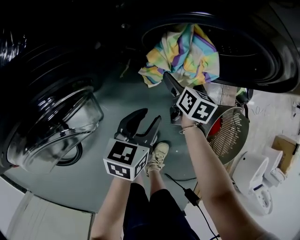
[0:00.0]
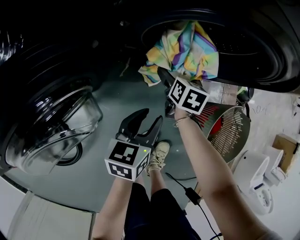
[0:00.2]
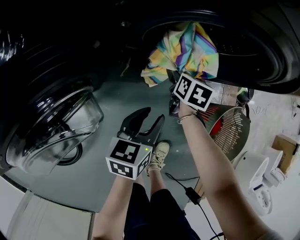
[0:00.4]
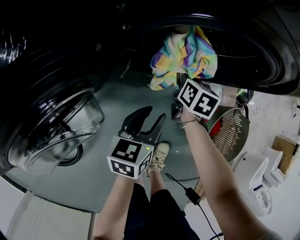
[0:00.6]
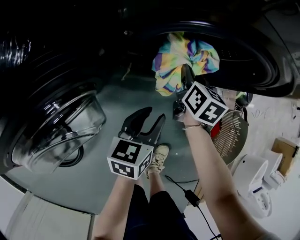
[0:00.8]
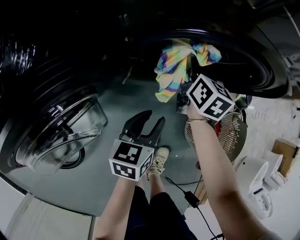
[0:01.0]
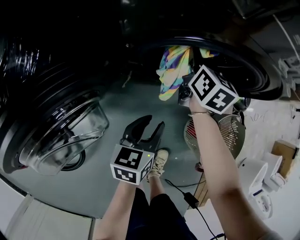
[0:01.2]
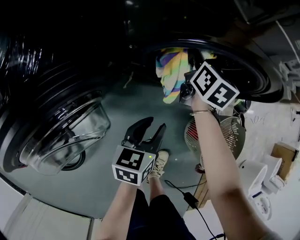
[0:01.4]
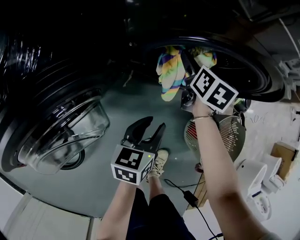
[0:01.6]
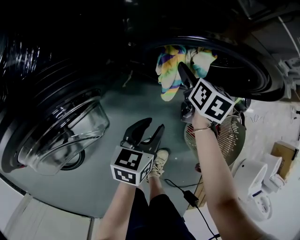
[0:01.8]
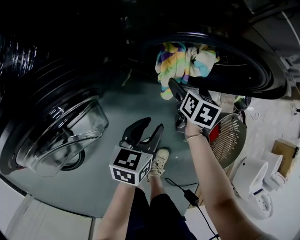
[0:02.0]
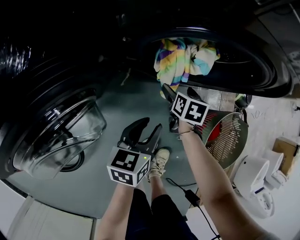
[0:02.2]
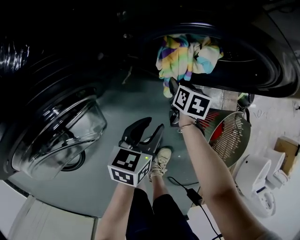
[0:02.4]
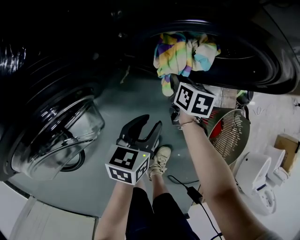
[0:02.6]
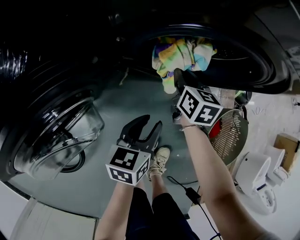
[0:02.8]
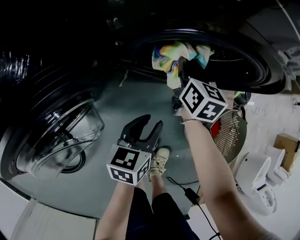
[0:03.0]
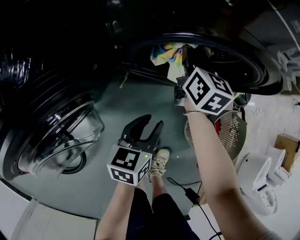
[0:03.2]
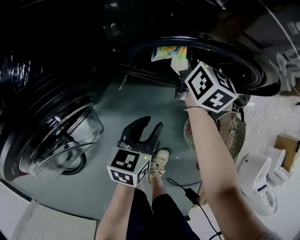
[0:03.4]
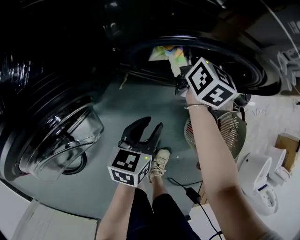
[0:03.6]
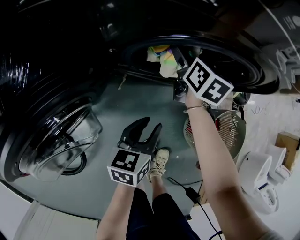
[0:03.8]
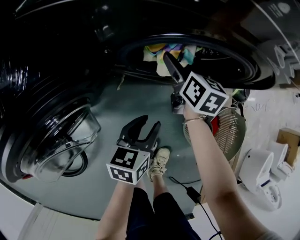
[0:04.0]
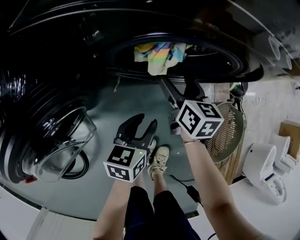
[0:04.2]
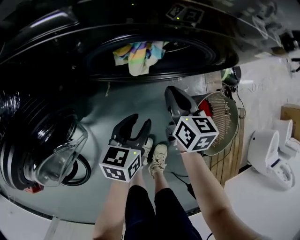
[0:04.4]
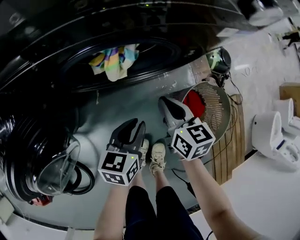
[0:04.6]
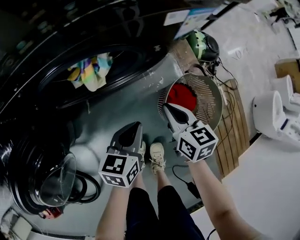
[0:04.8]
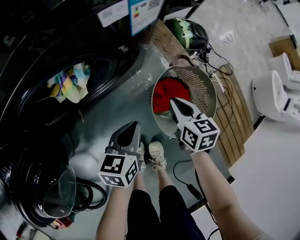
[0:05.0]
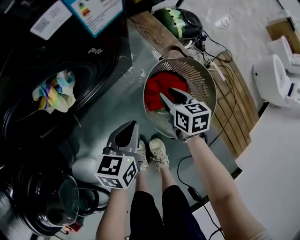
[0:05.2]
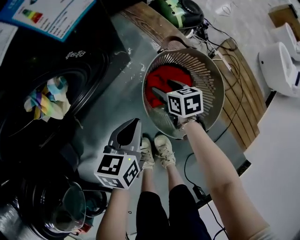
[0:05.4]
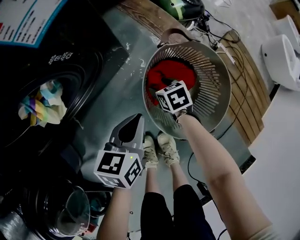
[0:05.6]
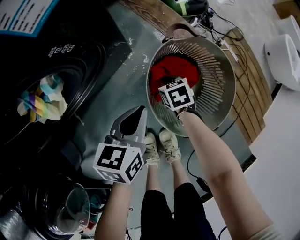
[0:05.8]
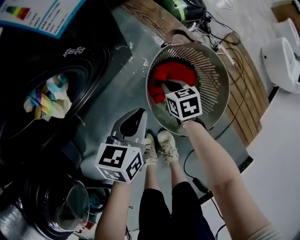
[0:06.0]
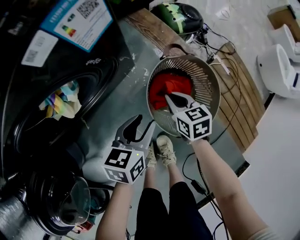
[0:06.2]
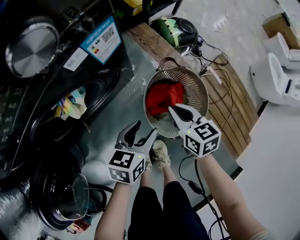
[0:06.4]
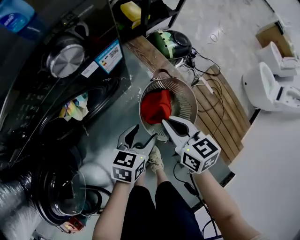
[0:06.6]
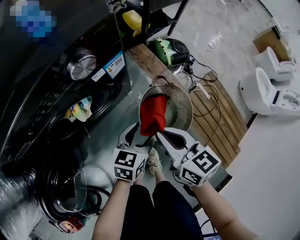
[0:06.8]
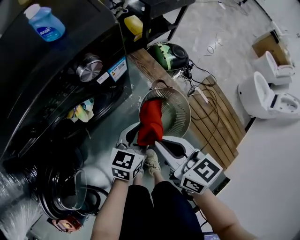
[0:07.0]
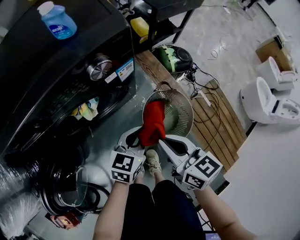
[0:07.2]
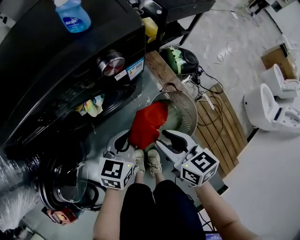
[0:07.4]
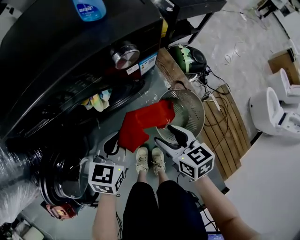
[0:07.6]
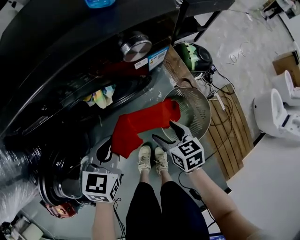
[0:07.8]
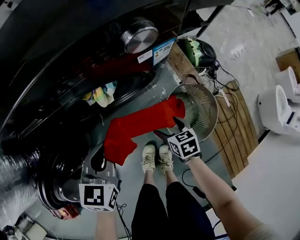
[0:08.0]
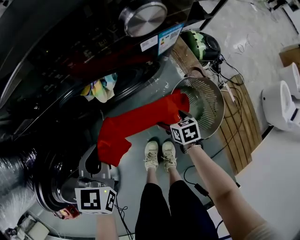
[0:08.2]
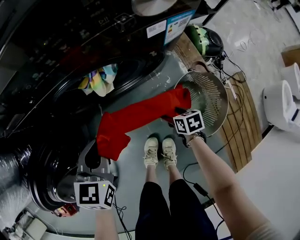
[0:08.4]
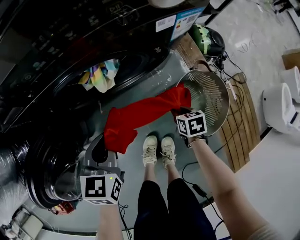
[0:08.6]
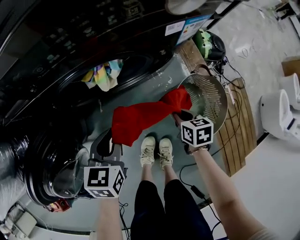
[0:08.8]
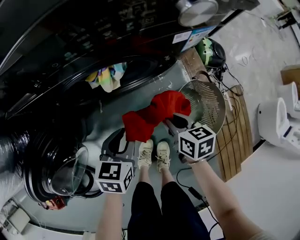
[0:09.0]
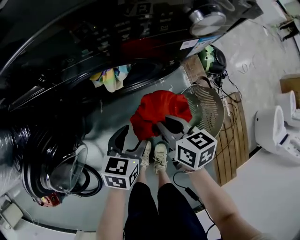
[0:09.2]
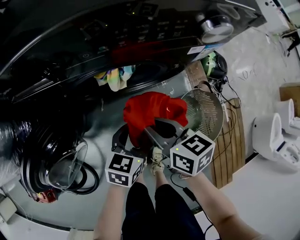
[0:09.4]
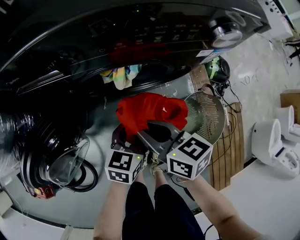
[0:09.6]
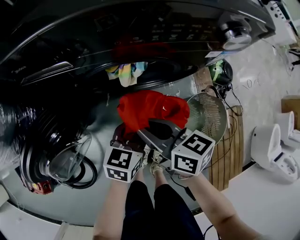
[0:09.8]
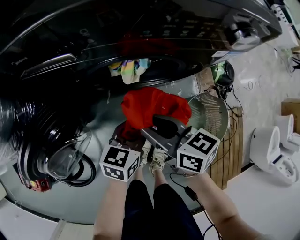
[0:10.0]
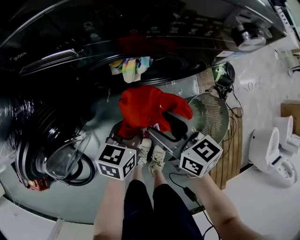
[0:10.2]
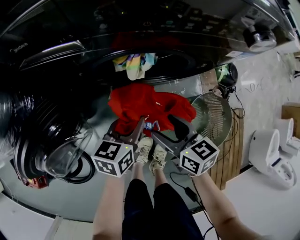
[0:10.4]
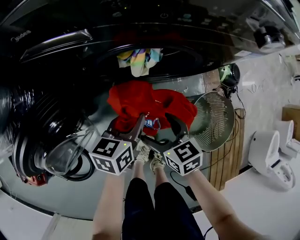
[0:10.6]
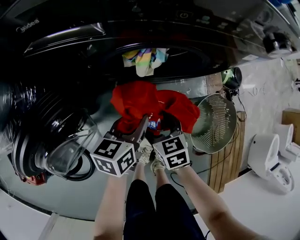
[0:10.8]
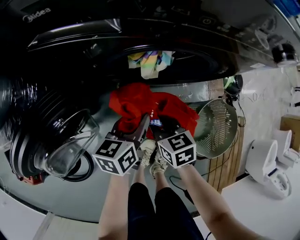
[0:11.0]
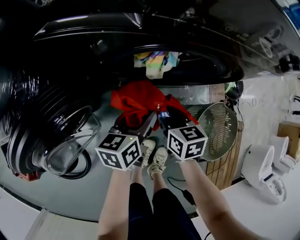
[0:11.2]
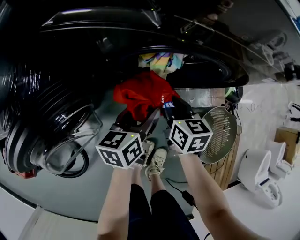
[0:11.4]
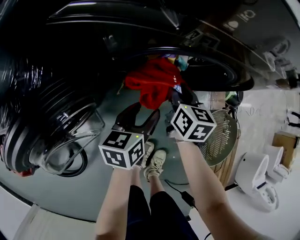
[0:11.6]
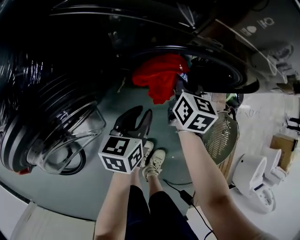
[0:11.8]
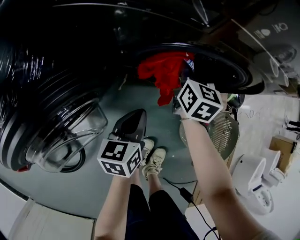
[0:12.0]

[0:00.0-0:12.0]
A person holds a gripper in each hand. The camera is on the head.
0:00.0 to 0:01.6: The right gripper moves upward and forward, about 15 cm, and closes and opens again.
0:01.6 to 0:03.0: The right gripper goes downward and returns, roughly 15 cm each way, and closes its fingers.
0:03.0 to 0:04.4: The left gripper shifts some 5 cm to the right, while the right gripper travels backward and to the right by approximately 15 cm, and opens, then closes once more.
0:04.4 to 0:06.0: The left gripper shifts approximately 20 cm to the right, and rotates about 30 degrees; the right gripper moves to the right and downward, some 35 cm, swivels approximately 30 degrees, and opens, then closes once more.
0:06.0 to 0:07.6: The left gripper travels upward and to the left by about 25 cm, rotates roughly 20 degrees, and opens, then closes once more, while the right gripper travels upward by roughly 35 cm, turns by approximately 30 degrees, and opens its fingers.
0:07.6 to 0:09.0: The left gripper heads downward and to the left, covering approximately 15 cm; the right gripper travels downward by about 15 cm, and opens and closes again.
0:09.0 to 0:10.4: The right gripper is displaced to the left by about 10 cm, changes its angle by some 20 degrees, and opens, while the left gripper opens and closes again.
0:10.4 to 0:12.0: The right gripper shifts about 25 cm forward, rotates about 30 degrees, and closes its fingers. Meanwhile the left gripper is displaced to the left and downward by roughly 10 cm, and opens, then closes again.

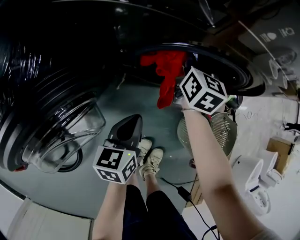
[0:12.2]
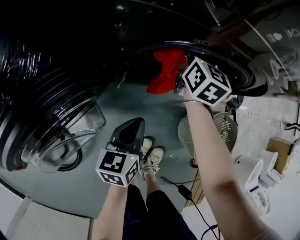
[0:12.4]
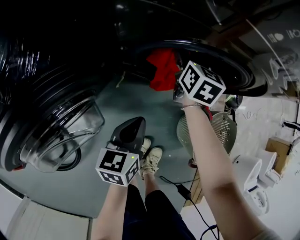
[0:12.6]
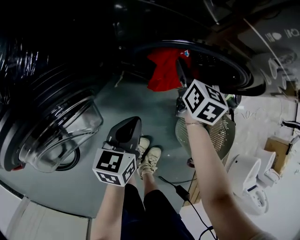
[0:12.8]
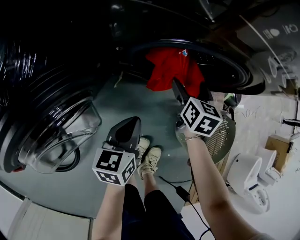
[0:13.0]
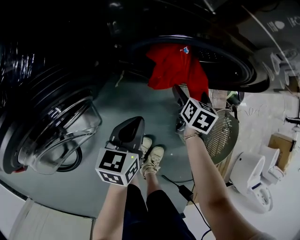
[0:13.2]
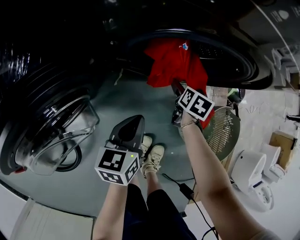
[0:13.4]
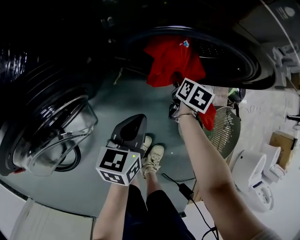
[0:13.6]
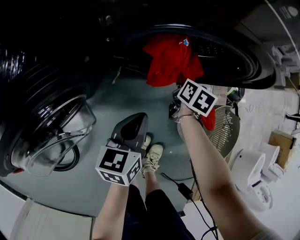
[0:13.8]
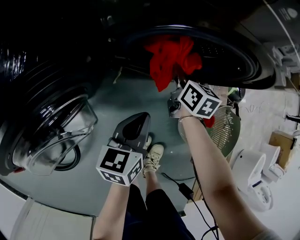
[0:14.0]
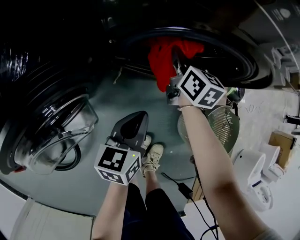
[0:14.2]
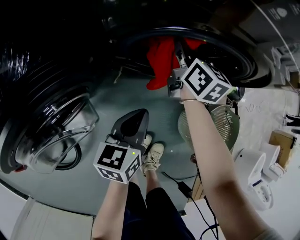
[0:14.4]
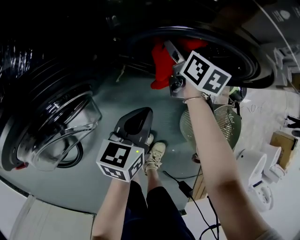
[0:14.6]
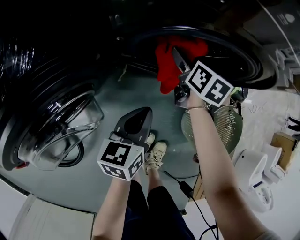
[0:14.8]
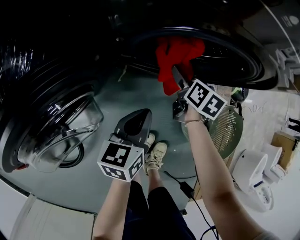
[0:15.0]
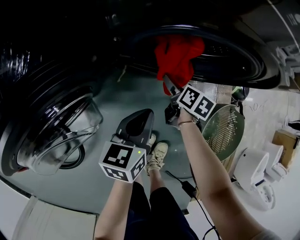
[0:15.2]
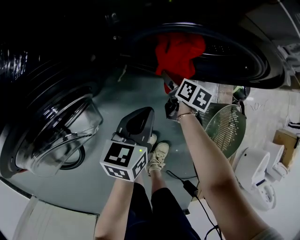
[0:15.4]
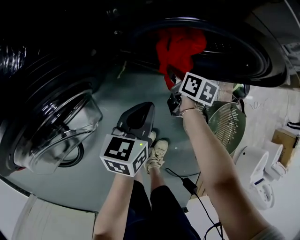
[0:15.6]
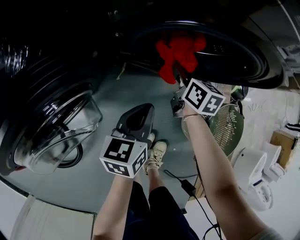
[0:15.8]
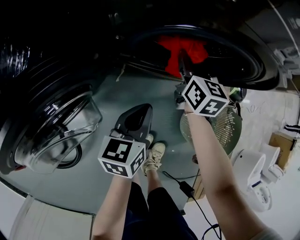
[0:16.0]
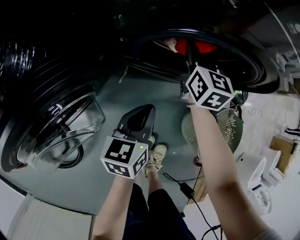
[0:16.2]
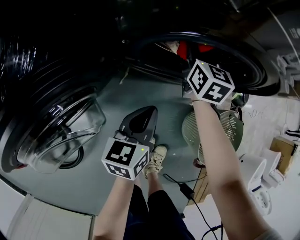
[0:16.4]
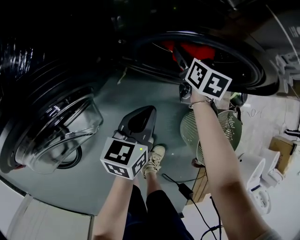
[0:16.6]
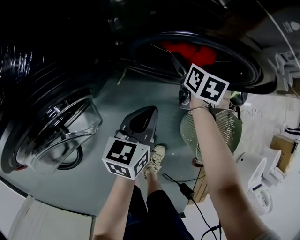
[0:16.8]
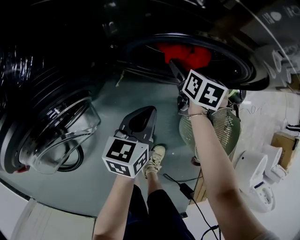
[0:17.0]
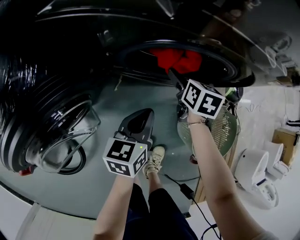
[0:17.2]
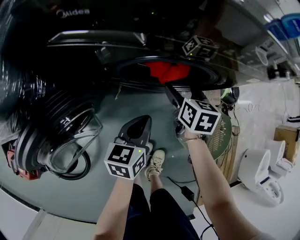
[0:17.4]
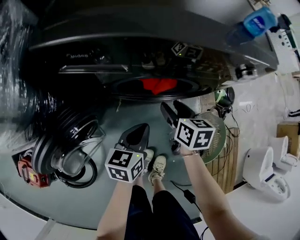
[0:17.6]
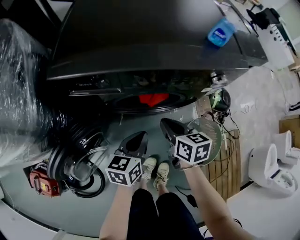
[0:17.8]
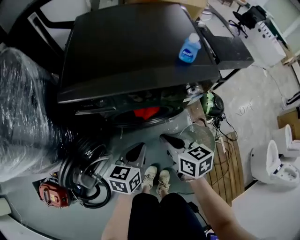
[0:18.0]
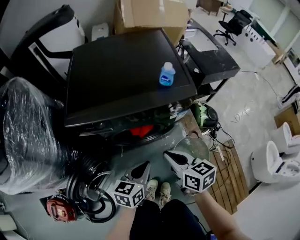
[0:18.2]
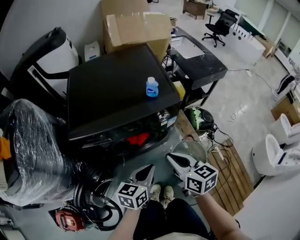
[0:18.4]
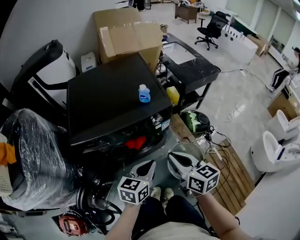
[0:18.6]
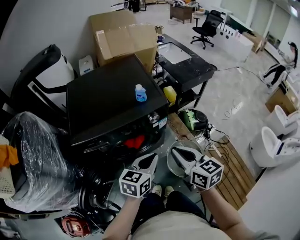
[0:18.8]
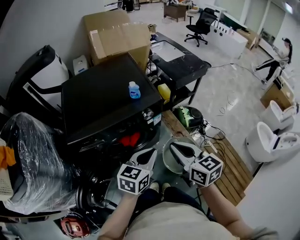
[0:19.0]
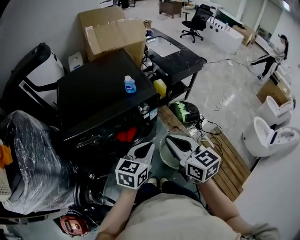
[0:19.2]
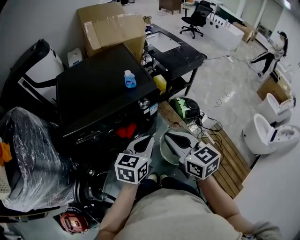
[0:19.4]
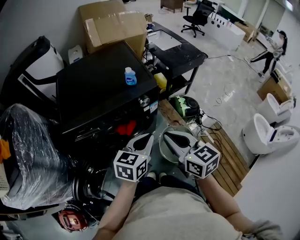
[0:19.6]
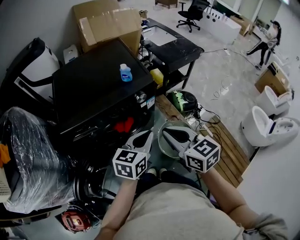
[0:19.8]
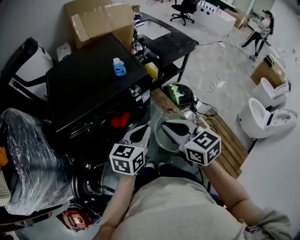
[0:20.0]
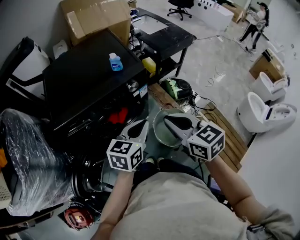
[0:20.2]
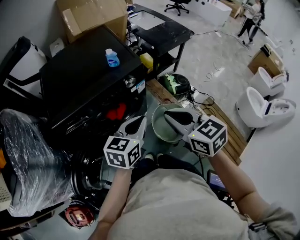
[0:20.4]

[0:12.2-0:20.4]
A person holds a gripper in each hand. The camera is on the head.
0:12.2 to 0:13.8: The right gripper heads downward, to the right and backward, covering roughly 20 cm, turns by some 30 degrees, and opens and closes again.
0:13.8 to 0:15.4: The right gripper goes upward and returns, about 15 cm each way, and opens up.
0:15.4 to 0:17.2: The right gripper goes approximately 15 cm upward, rotates about 20 degrees, and closes, then opens again.
0:17.2 to 0:18.8: The right gripper shifts roughly 50 cm upward and backward, rotates some 30 degrees, and closes its fingers, while the left gripper shifts about 40 cm upward and to the right, and changes its angle by about 40 degrees.
0:18.8 to 0:20.4: The grippers move only a little.

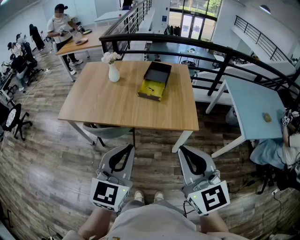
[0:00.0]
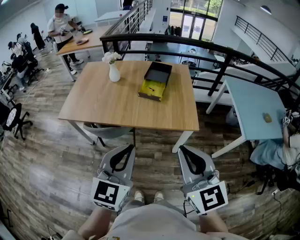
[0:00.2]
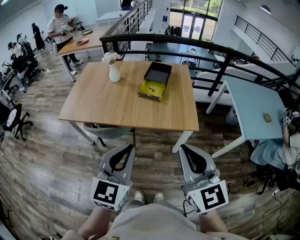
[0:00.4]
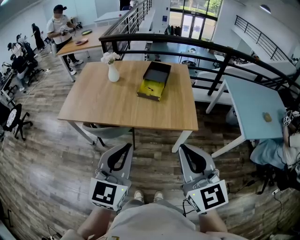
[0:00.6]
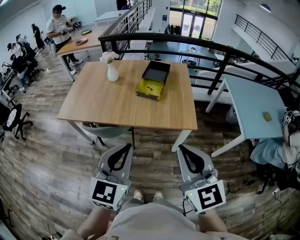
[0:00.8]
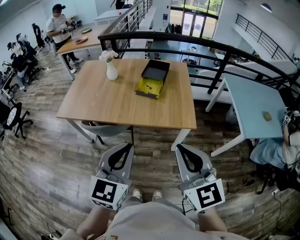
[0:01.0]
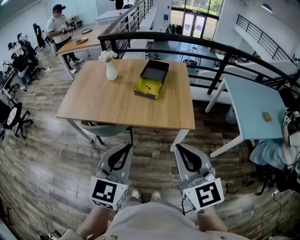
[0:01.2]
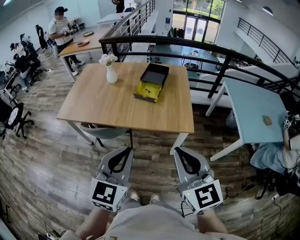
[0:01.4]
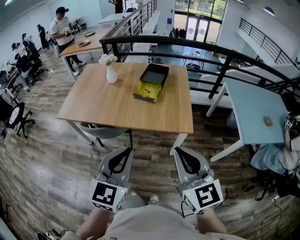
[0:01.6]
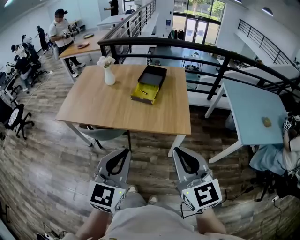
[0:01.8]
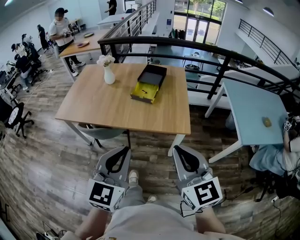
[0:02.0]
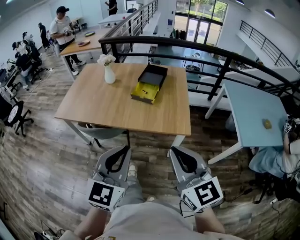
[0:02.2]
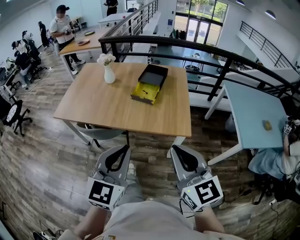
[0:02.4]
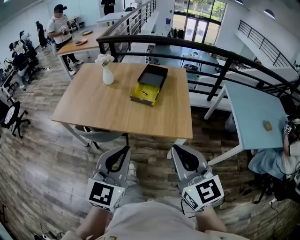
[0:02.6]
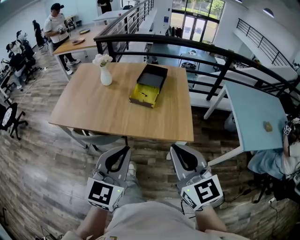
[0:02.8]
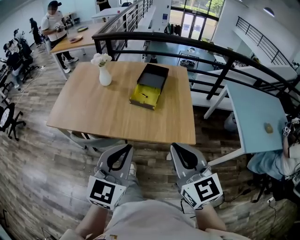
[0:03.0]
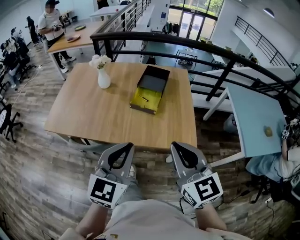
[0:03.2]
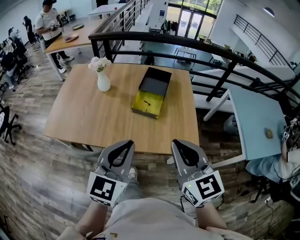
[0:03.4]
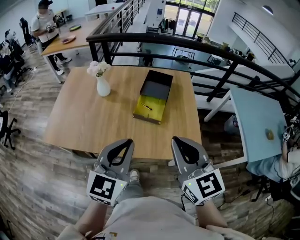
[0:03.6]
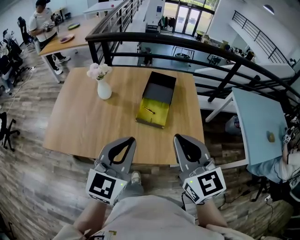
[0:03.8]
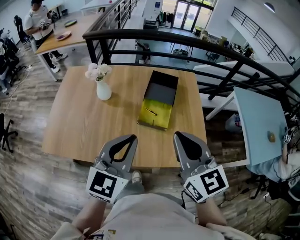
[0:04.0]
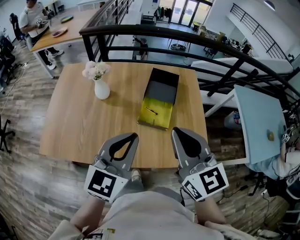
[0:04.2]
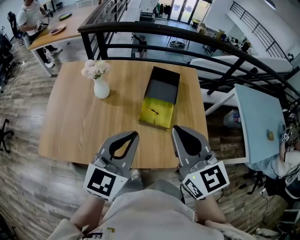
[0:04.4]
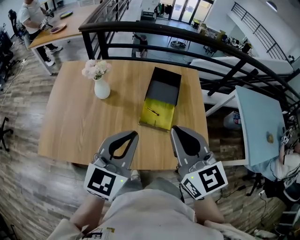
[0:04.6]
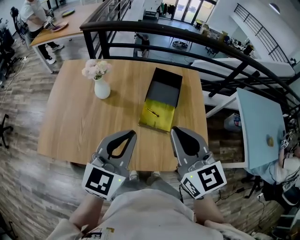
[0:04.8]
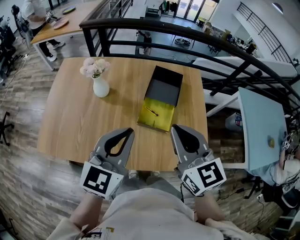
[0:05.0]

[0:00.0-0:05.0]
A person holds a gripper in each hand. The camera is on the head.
0:00.0 to 0:01.6: Both grippers travel together to the right, approximately 5 cm.
0:01.6 to 0:03.4: Both grippers travel together forward, roughly 25 cm.
0:03.4 to 0:05.0: The grippers both shift forward and to the left by roughly 25 cm.
